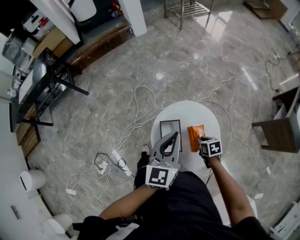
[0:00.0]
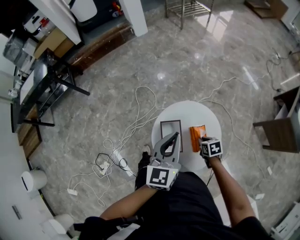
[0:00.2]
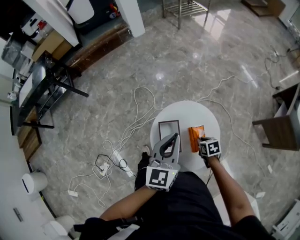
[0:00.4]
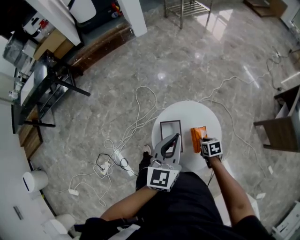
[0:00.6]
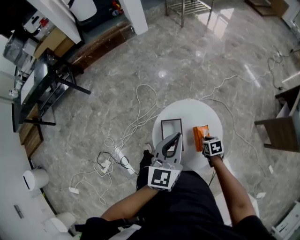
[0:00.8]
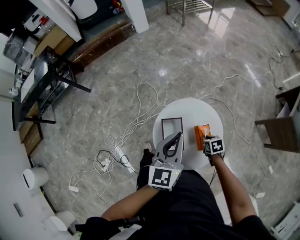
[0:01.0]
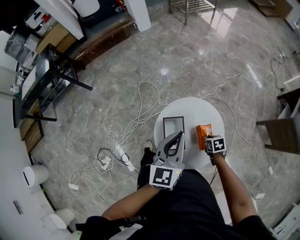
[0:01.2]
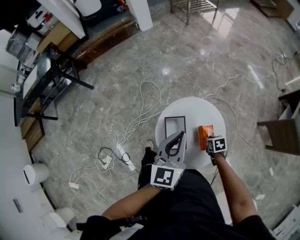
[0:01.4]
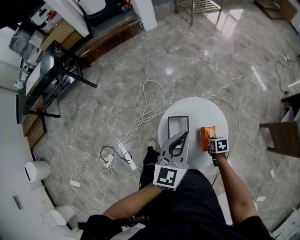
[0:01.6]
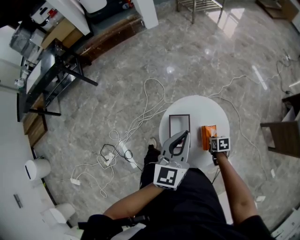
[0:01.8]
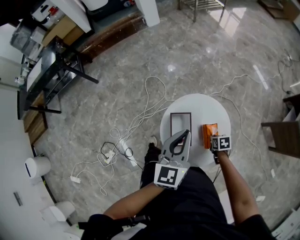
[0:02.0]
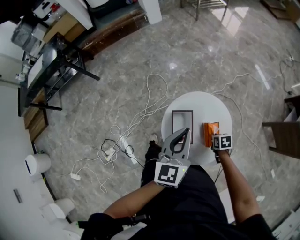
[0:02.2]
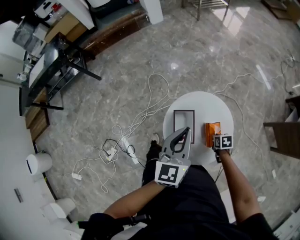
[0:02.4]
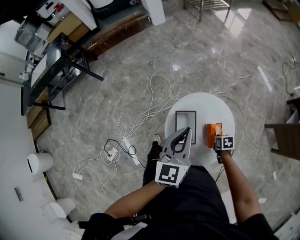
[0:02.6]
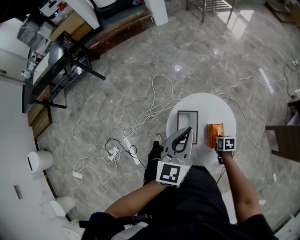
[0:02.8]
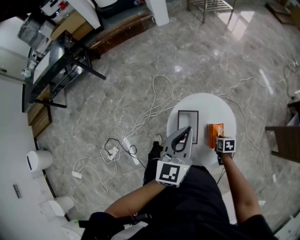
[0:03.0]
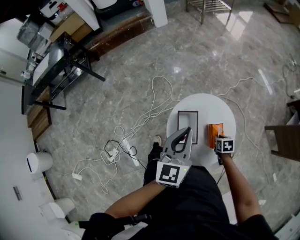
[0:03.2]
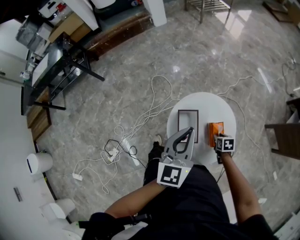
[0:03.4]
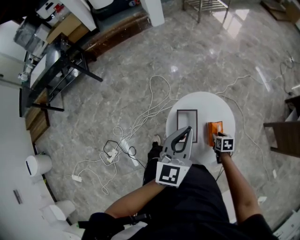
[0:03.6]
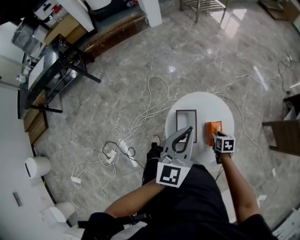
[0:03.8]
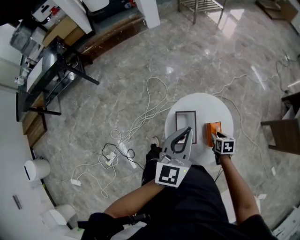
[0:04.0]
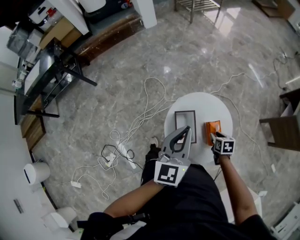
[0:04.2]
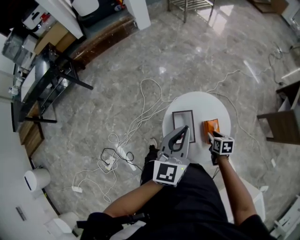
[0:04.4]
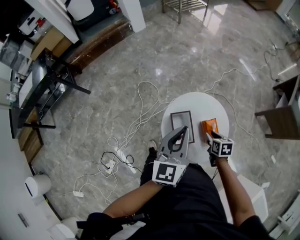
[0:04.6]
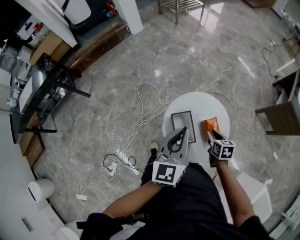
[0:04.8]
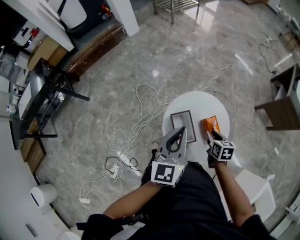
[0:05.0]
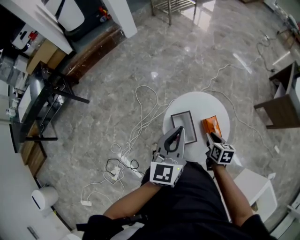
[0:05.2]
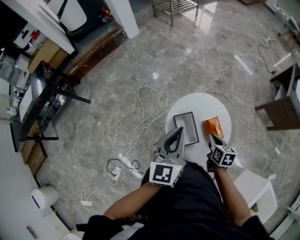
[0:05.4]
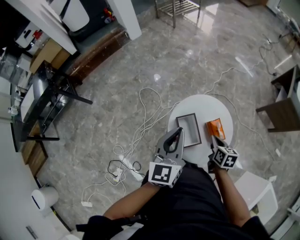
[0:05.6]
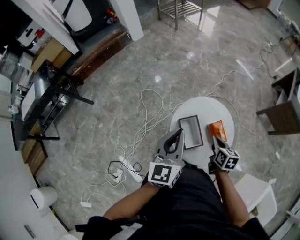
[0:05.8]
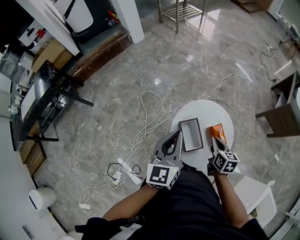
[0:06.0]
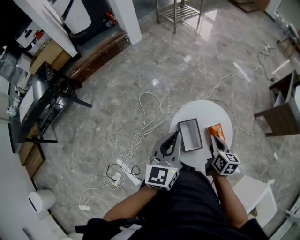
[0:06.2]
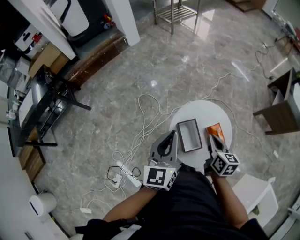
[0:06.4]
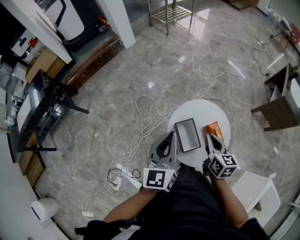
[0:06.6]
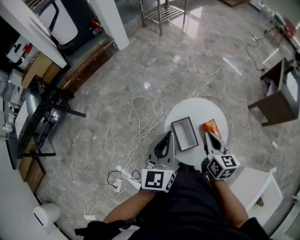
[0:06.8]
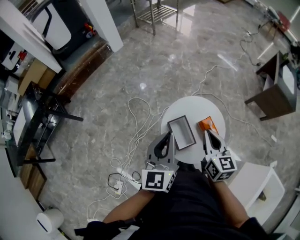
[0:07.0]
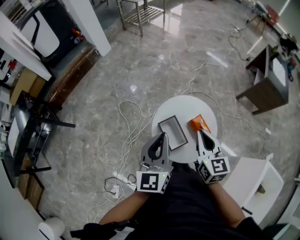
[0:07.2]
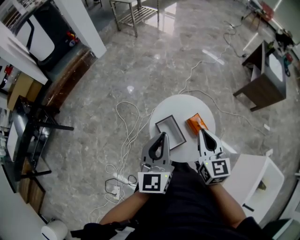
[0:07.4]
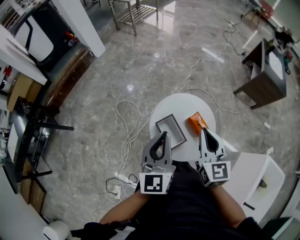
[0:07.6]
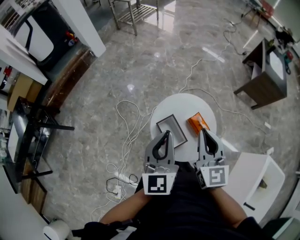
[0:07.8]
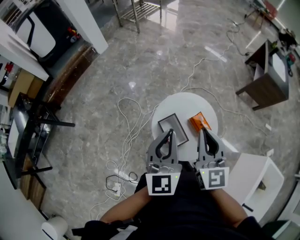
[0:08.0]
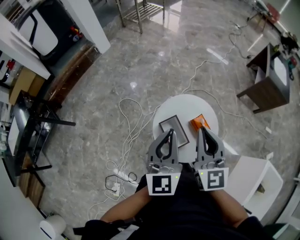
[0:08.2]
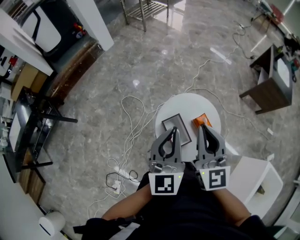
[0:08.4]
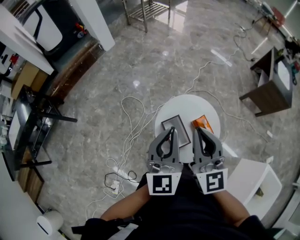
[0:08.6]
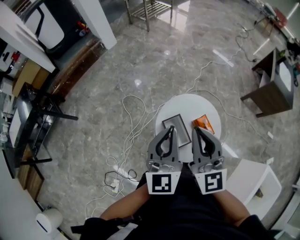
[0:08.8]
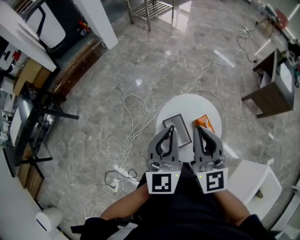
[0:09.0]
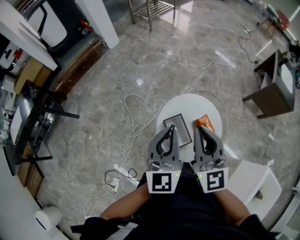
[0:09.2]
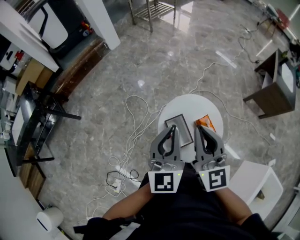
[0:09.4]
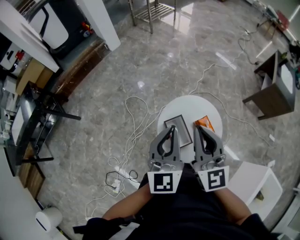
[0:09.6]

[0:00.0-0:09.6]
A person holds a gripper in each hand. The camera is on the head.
0:00.0 to 0:01.6: The right gripper heads downward, covering roughly 5 cm.
0:01.6 to 0:03.2: The grippers move only a little.
0:03.2 to 0:04.8: The right gripper is displaced upward and to the left by roughly 15 cm, and turns by approximately 20 degrees.
0:04.8 to 0:06.4: The right gripper travels upward and to the left by approximately 15 cm, changes its angle by some 20 degrees, and closes up; the left gripper travels to the left by approximately 10 cm.
0:06.4 to 0:08.0: The left gripper shifts roughly 5 cm to the right, while the right gripper shifts approximately 15 cm upward, and rotates some 40 degrees.
0:08.0 to 0:09.6: The right gripper changes place by approximately 5 cm.

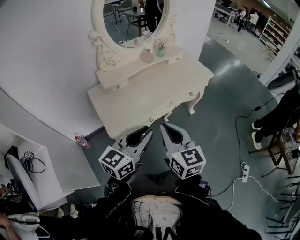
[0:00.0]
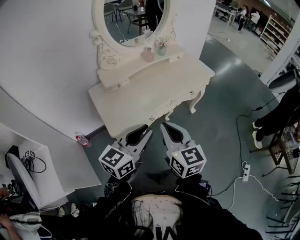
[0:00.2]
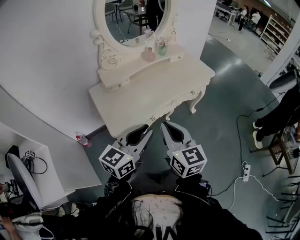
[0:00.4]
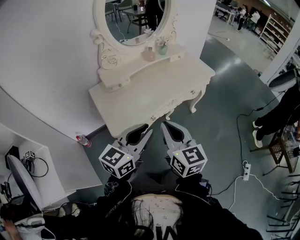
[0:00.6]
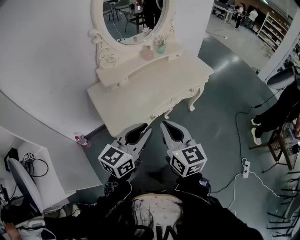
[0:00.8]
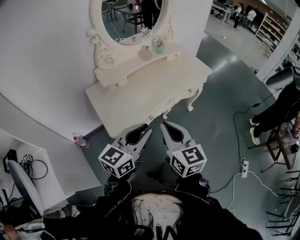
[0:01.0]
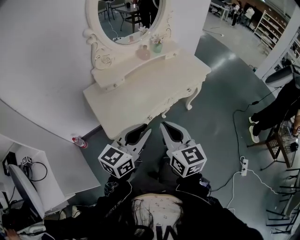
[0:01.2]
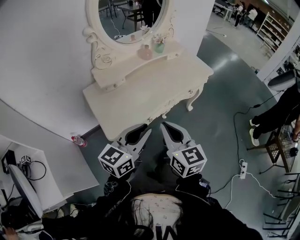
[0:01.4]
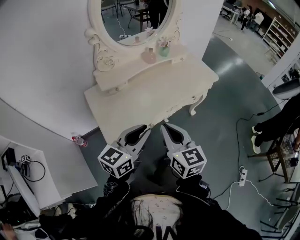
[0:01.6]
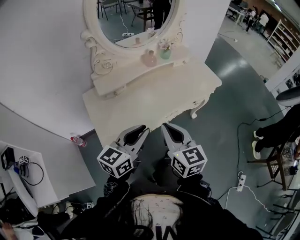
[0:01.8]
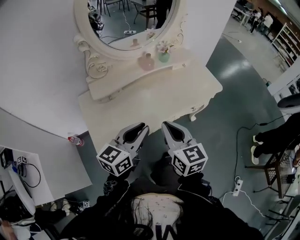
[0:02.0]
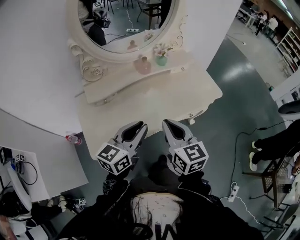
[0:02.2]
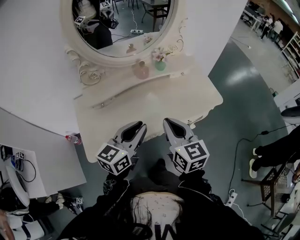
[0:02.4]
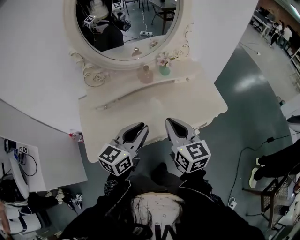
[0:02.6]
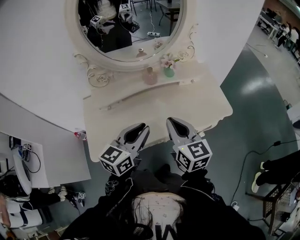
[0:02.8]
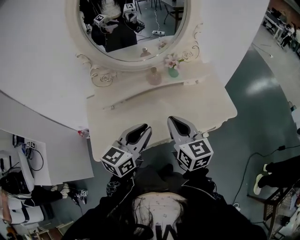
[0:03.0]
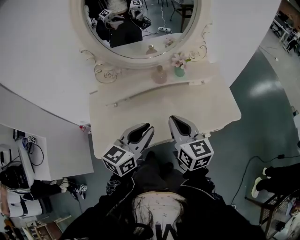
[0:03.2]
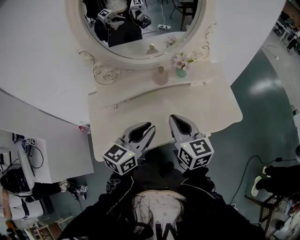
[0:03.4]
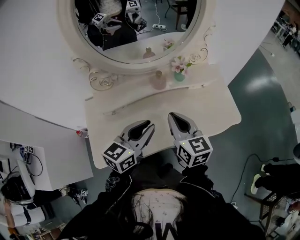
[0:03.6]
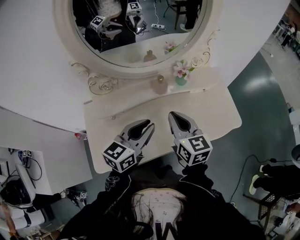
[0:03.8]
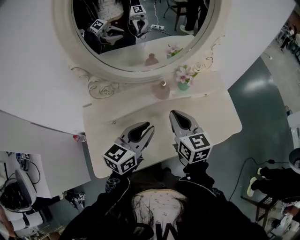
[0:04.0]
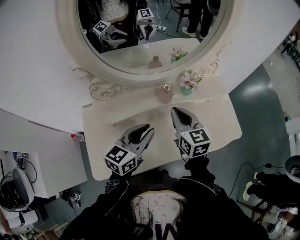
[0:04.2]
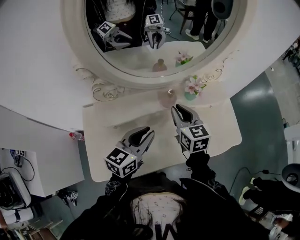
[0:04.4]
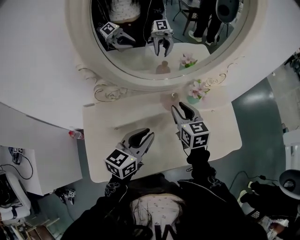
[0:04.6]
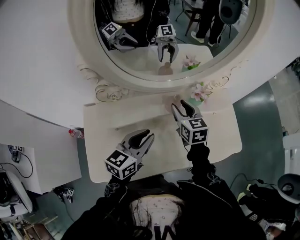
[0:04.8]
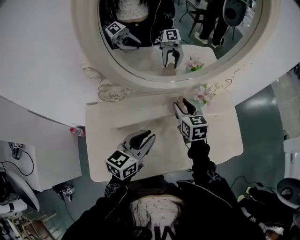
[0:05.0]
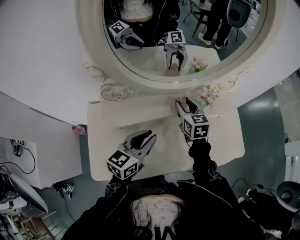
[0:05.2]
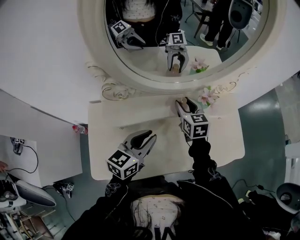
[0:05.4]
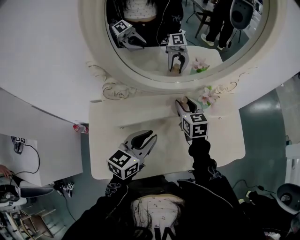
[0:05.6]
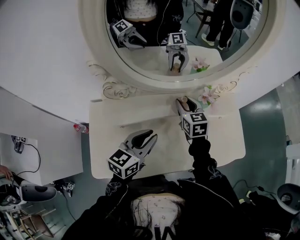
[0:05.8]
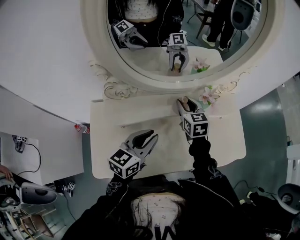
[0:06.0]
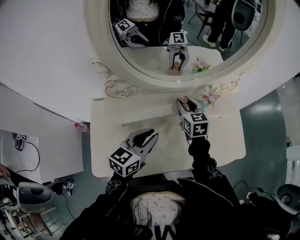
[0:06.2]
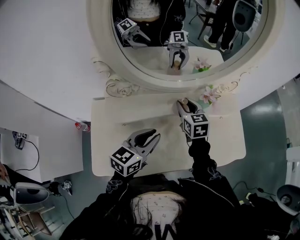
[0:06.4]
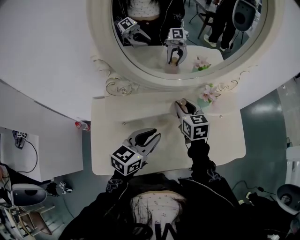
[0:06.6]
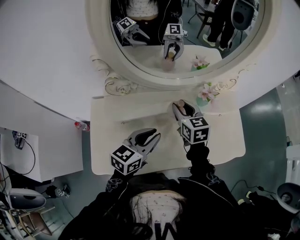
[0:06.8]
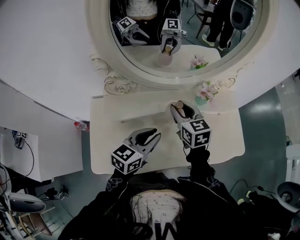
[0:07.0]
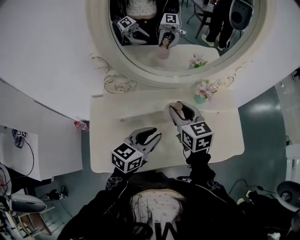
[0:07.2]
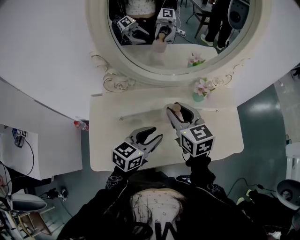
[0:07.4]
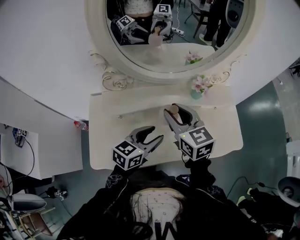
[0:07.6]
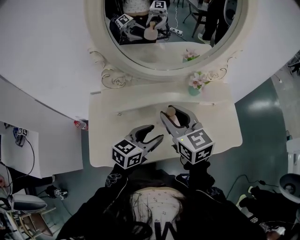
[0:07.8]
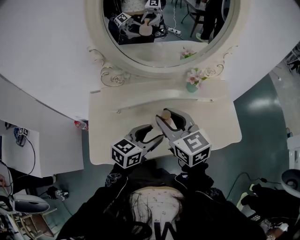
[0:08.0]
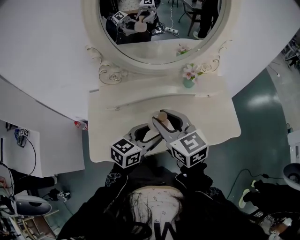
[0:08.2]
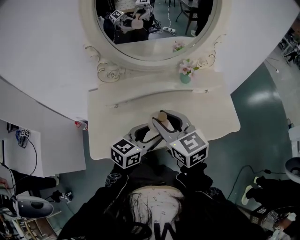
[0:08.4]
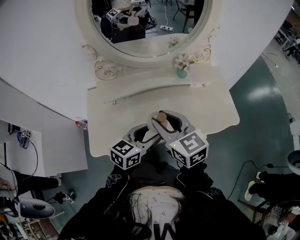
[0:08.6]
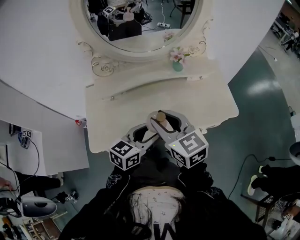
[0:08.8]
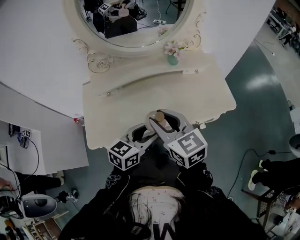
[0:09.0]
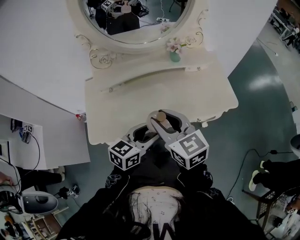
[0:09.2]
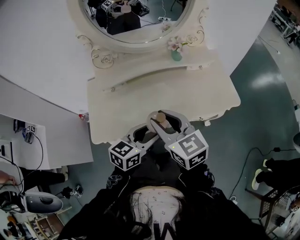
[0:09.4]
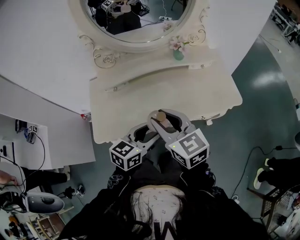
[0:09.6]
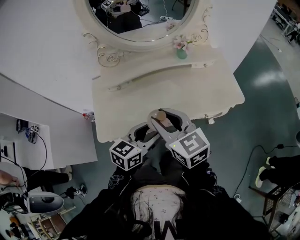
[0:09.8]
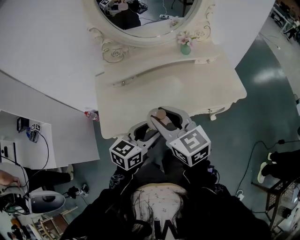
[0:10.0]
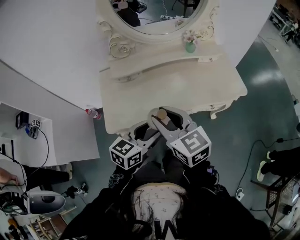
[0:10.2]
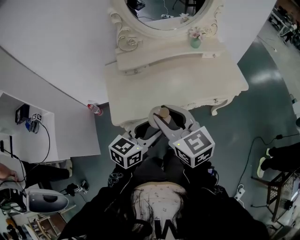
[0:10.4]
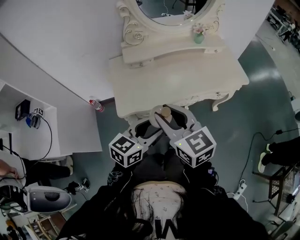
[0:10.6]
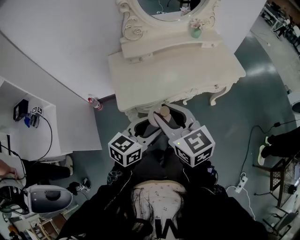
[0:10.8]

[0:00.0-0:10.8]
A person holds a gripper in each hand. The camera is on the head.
0:00.0 to 0:01.6: The grippers both shift forward by some 5 cm.
0:01.6 to 0:03.0: Both grippers move forward and to the right, approximately 25 cm. The left gripper swivels roughly 20 degrees.
0:03.0 to 0:04.6: The left gripper shifts approximately 15 cm forward and to the left; the right gripper goes about 25 cm forward, and opens.
0:04.6 to 0:06.2: The right gripper moves forward, about 5 cm.
0:06.2 to 0:07.8: The left gripper travels backward and to the right by roughly 5 cm, and opens its fingers; the right gripper goes approximately 20 cm backward and upward.
0:07.8 to 0:09.2: The left gripper heads backward and to the right, covering approximately 15 cm; the right gripper goes roughly 20 cm backward.
0:09.2 to 0:10.8: Both grippers move backward and to the left, approximately 25 cm.

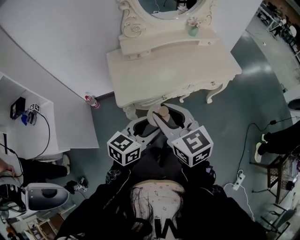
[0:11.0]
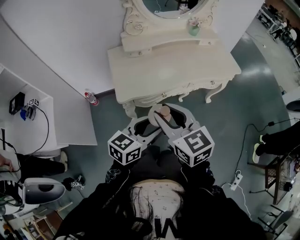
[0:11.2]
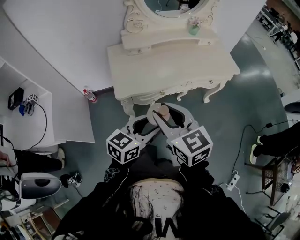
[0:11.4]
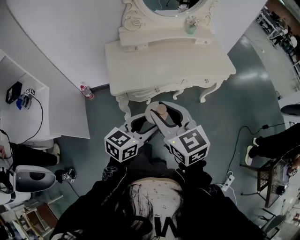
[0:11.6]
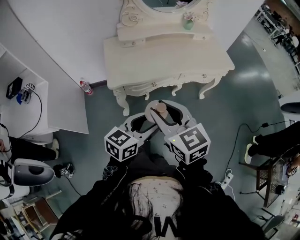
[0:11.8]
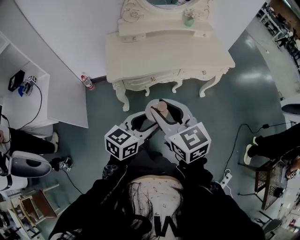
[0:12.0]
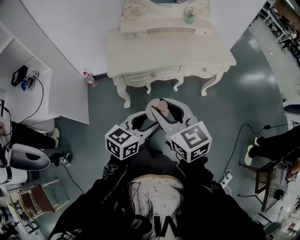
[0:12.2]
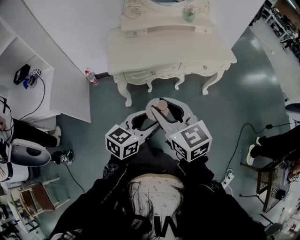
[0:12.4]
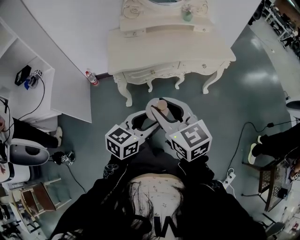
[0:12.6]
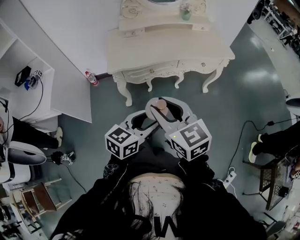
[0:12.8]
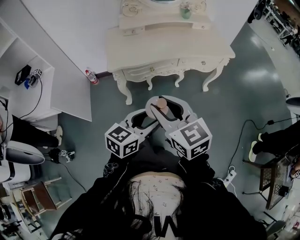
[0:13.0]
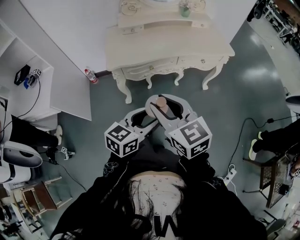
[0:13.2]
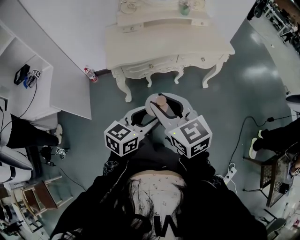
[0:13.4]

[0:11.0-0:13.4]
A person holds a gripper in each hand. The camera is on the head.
0:11.0 to 0:12.2: The two grippers go approximately 15 cm backward and to the right.
0:12.2 to 0:13.4: There are only small adjustments of the grippers.

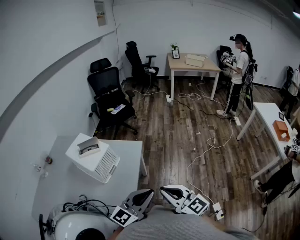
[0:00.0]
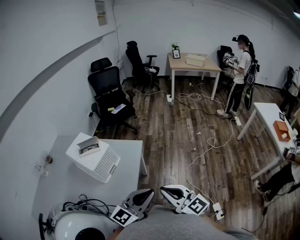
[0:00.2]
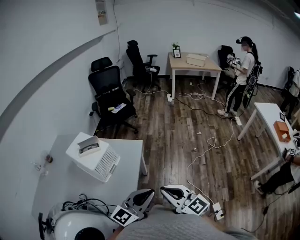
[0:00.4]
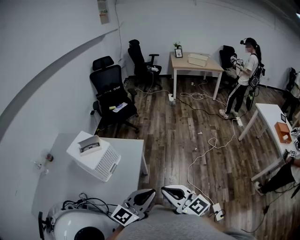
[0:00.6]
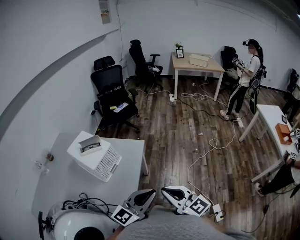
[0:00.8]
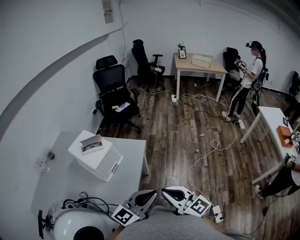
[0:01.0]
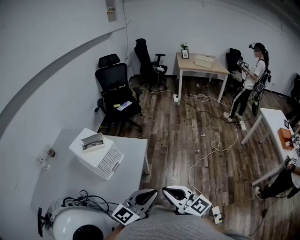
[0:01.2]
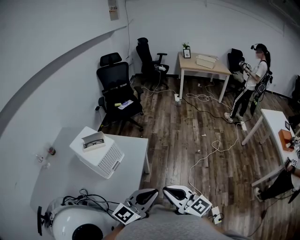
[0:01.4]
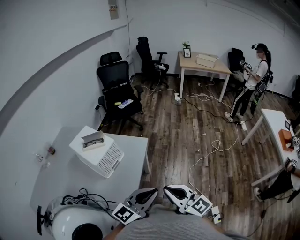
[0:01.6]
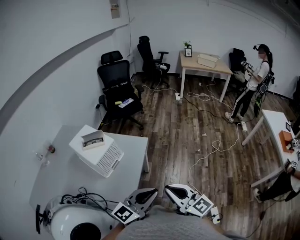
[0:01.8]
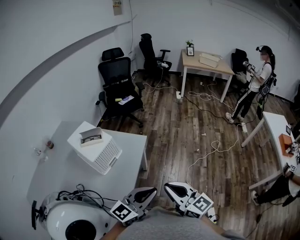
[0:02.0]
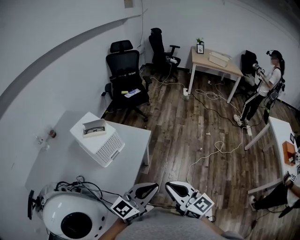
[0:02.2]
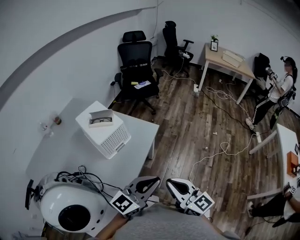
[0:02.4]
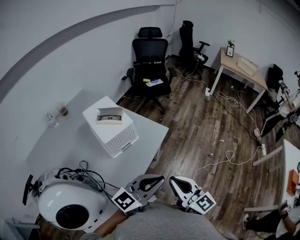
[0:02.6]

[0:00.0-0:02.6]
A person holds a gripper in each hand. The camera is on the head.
0:00.0 to 0:01.2: The grippers stay close to where they were, moving slightly.
0:01.2 to 0:02.6: Both grippers travel together forward, some 10 cm.
